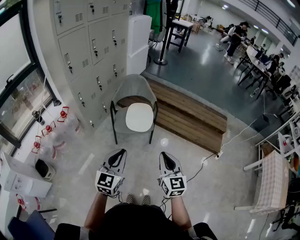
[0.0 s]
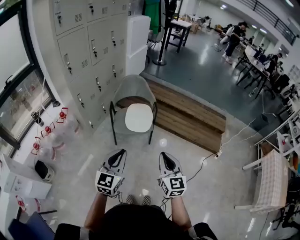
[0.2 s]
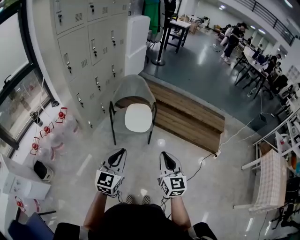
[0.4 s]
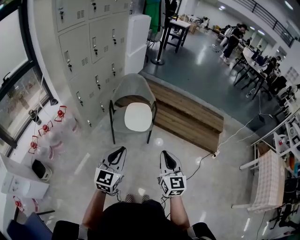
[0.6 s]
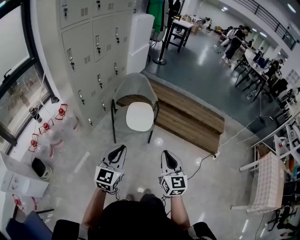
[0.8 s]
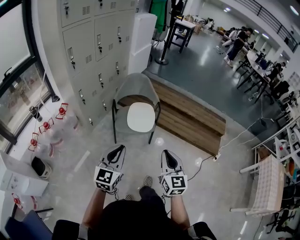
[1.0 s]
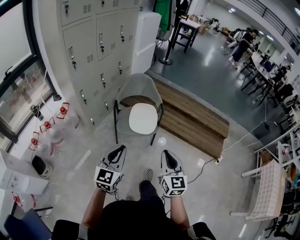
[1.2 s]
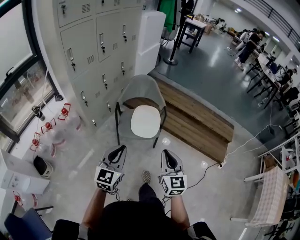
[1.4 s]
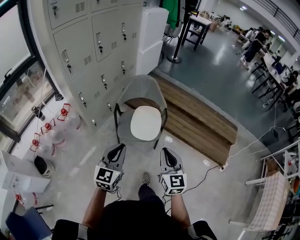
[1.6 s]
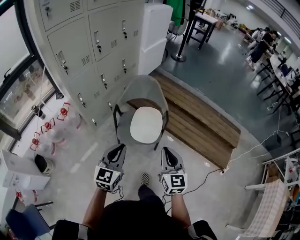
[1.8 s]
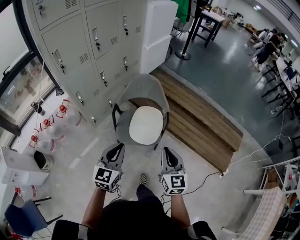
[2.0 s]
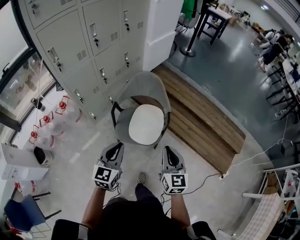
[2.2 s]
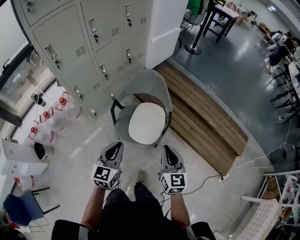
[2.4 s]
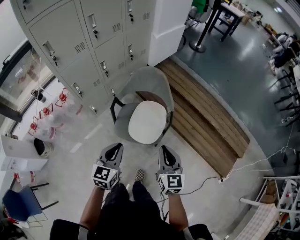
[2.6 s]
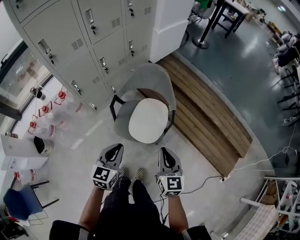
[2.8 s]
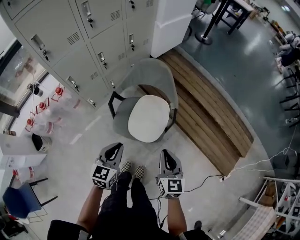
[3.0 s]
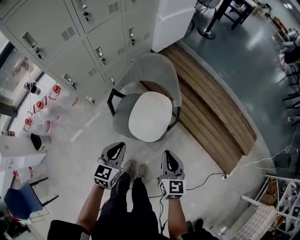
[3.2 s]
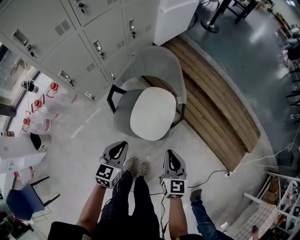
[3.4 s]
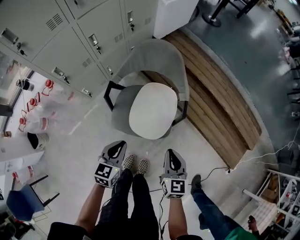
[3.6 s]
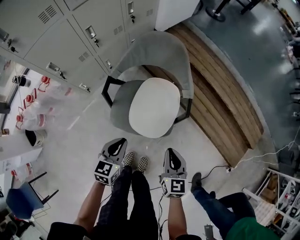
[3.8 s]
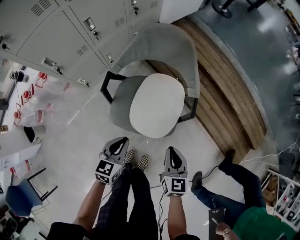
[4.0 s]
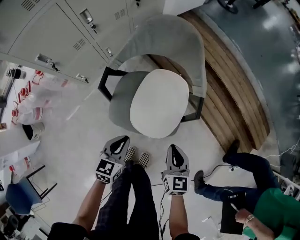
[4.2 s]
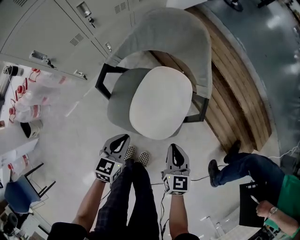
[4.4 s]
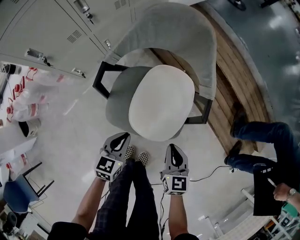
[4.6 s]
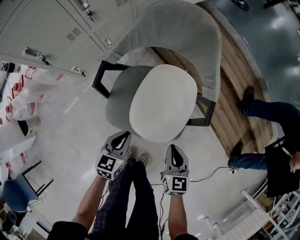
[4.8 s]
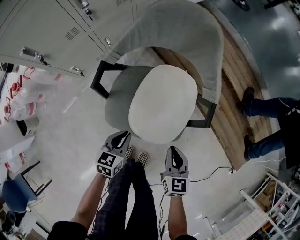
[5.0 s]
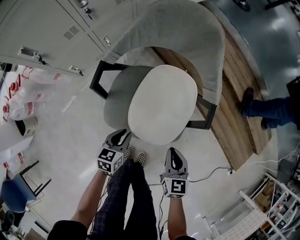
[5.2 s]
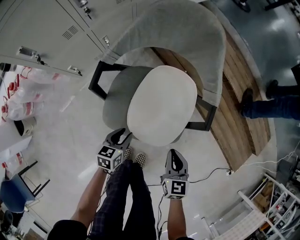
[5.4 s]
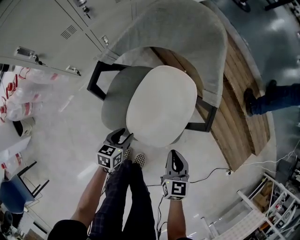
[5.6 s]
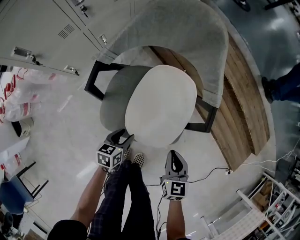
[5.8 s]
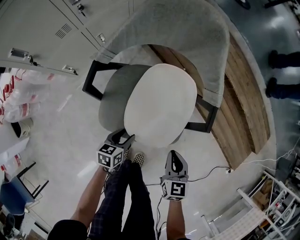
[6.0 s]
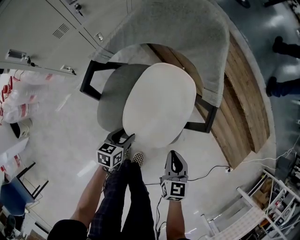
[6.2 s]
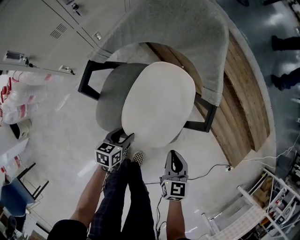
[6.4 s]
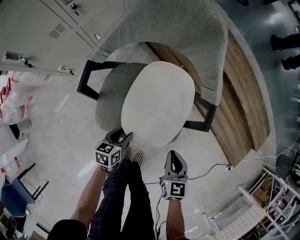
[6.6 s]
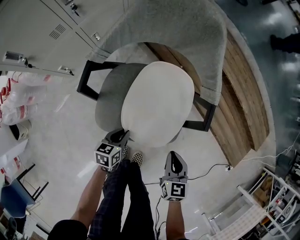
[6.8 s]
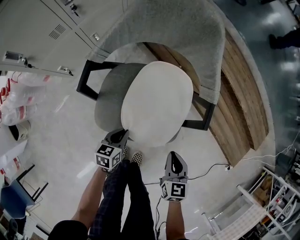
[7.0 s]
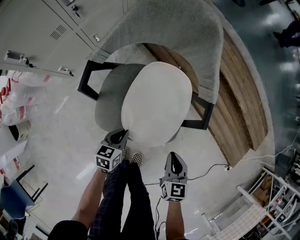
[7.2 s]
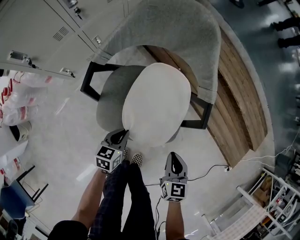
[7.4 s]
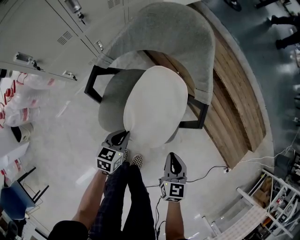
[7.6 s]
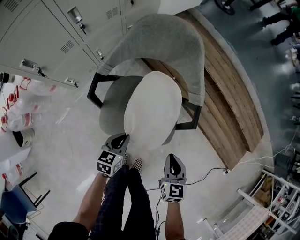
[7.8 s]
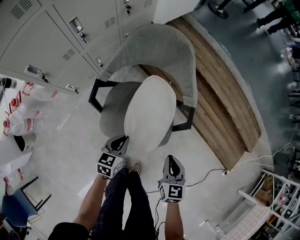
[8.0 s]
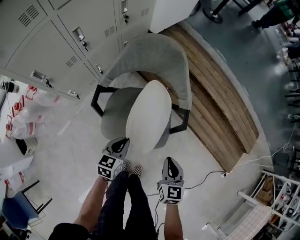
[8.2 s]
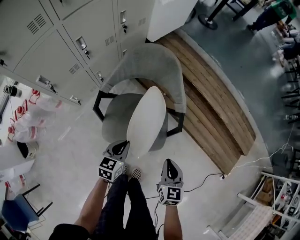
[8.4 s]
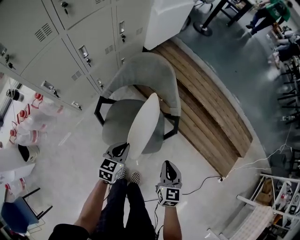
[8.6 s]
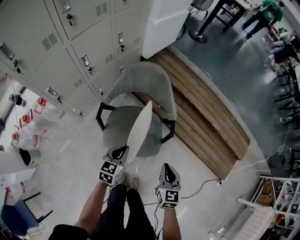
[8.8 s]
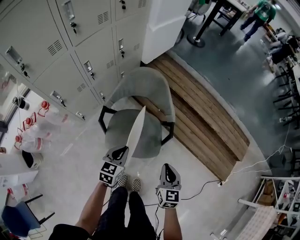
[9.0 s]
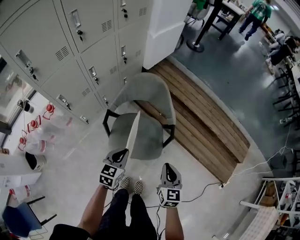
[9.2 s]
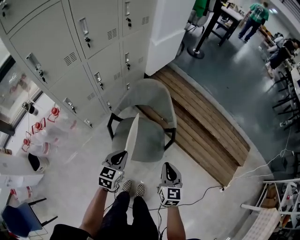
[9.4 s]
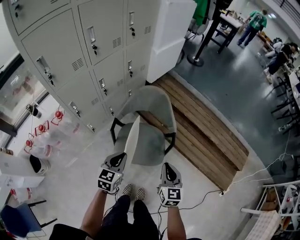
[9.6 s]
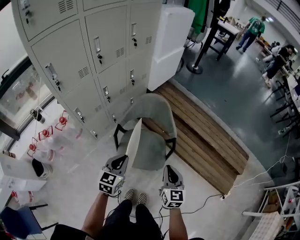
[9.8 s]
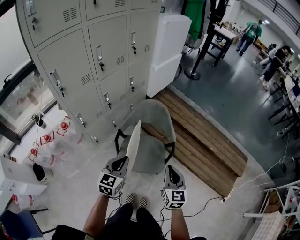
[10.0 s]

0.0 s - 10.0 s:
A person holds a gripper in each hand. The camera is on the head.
0.0 s - 1.4 s: Both grippers move forward and to the left, approximately 15 cm.
1.4 s - 2.8 s: The right gripper heads forward, covering about 30 cm. Meanwhile the left gripper shifts roughly 30 cm forward and downward, and changes its angle by about 20 degrees.
2.8 s - 4.2 s: Both grippers travel together downward, roughly 30 cm.
4.2 s - 5.8 s: The right gripper shifts some 10 cm downward; the left gripper goes some 20 cm downward, turns by approximately 20 degrees, and opens its fingers.
5.8 s - 7.2 s: The left gripper closes up.
7.2 s - 8.6 s: The grippers both shift upward by roughly 25 cm.
8.6 s - 10.0 s: Both grippers travel together upward, approximately 25 cm.

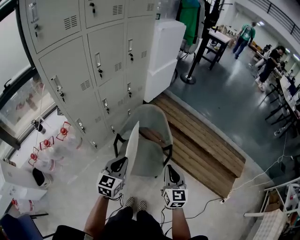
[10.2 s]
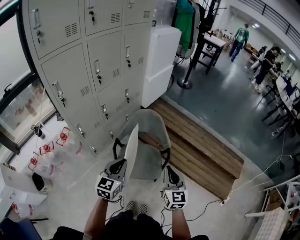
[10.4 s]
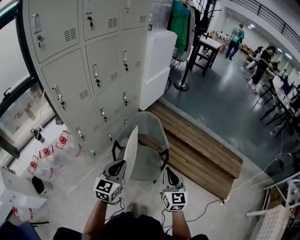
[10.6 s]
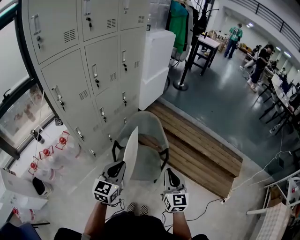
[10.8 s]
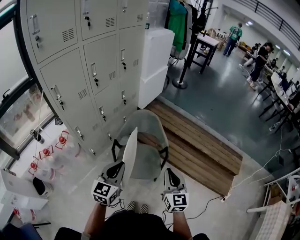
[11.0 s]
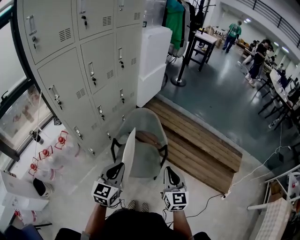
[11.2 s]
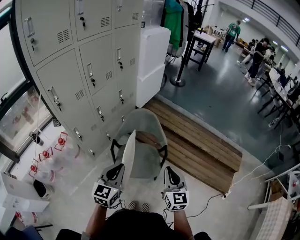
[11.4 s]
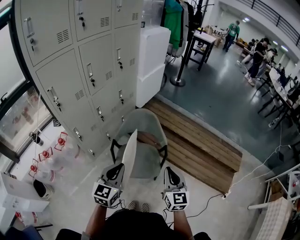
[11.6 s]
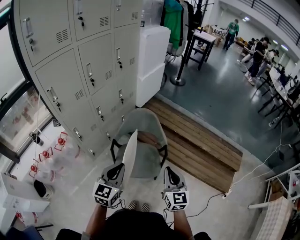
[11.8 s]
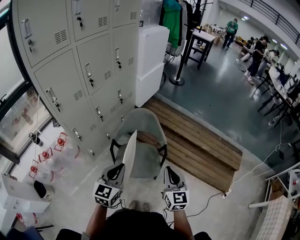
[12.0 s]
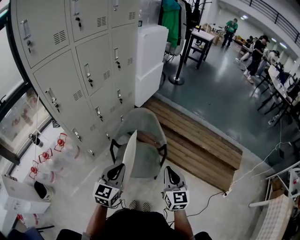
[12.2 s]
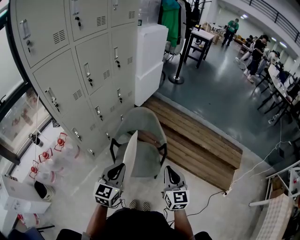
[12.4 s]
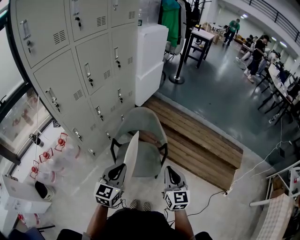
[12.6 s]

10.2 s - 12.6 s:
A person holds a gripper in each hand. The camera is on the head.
10.2 s - 11.4 s: The left gripper goes roughly 10 cm backward and upward, while the right gripper changes place by about 5 cm.
11.4 s - 12.6 s: Neither gripper changes place.

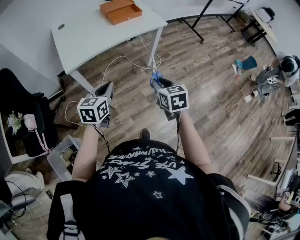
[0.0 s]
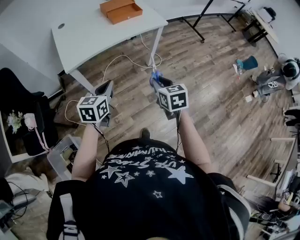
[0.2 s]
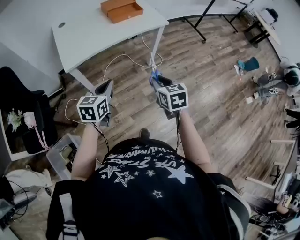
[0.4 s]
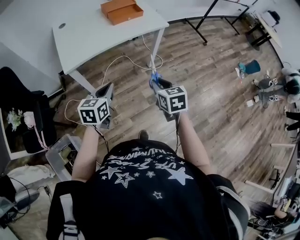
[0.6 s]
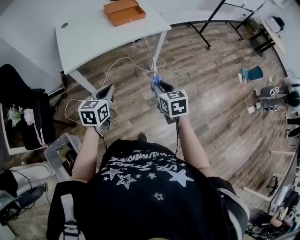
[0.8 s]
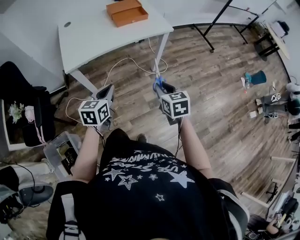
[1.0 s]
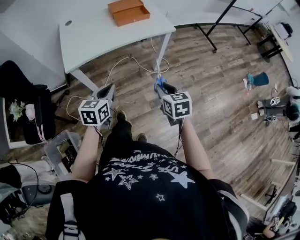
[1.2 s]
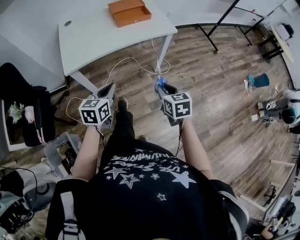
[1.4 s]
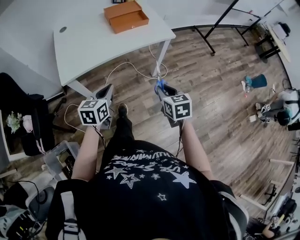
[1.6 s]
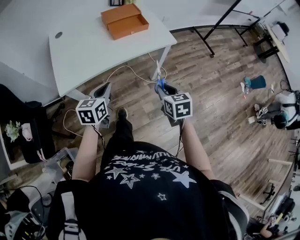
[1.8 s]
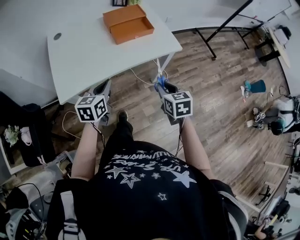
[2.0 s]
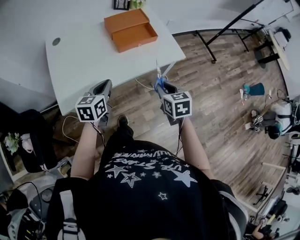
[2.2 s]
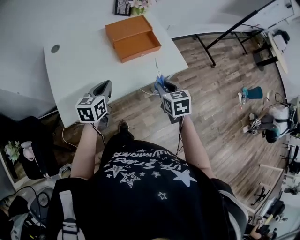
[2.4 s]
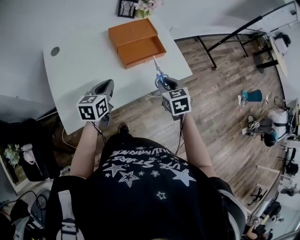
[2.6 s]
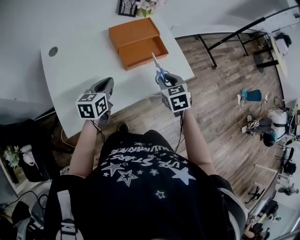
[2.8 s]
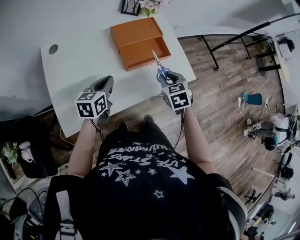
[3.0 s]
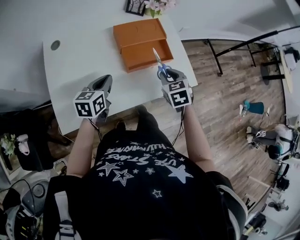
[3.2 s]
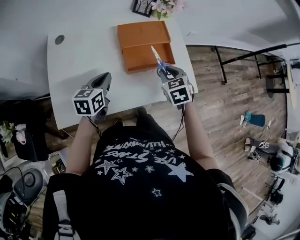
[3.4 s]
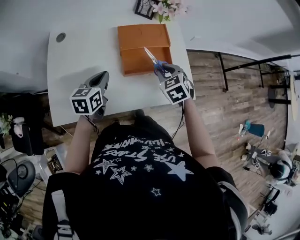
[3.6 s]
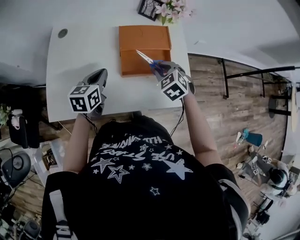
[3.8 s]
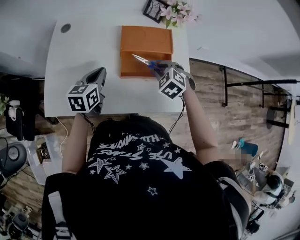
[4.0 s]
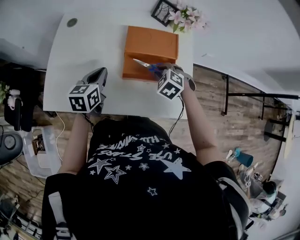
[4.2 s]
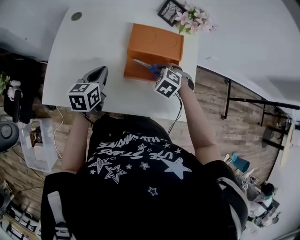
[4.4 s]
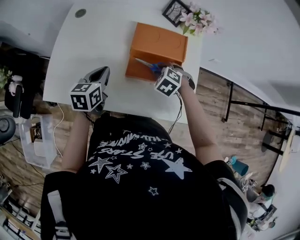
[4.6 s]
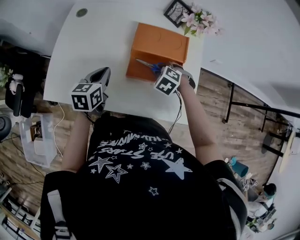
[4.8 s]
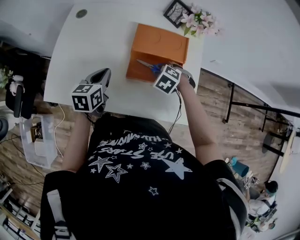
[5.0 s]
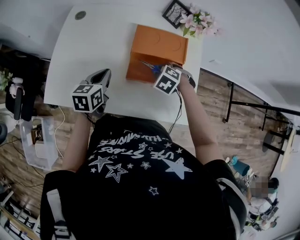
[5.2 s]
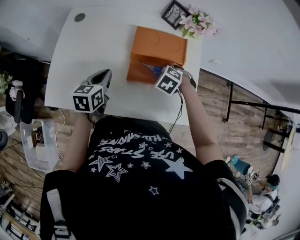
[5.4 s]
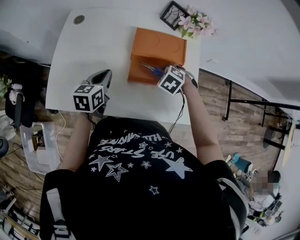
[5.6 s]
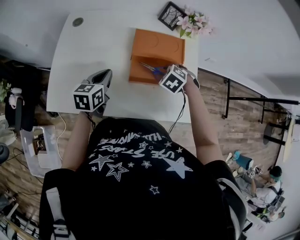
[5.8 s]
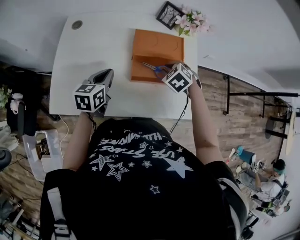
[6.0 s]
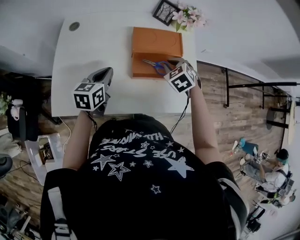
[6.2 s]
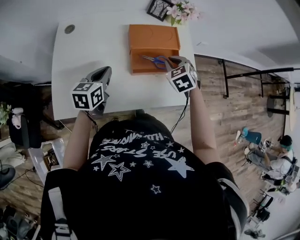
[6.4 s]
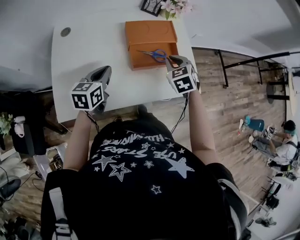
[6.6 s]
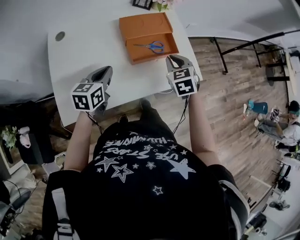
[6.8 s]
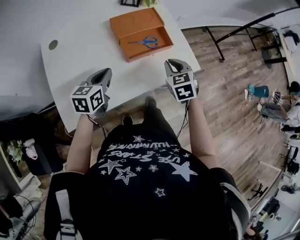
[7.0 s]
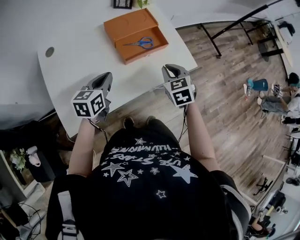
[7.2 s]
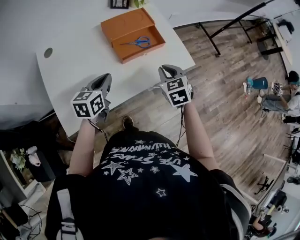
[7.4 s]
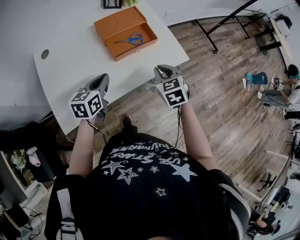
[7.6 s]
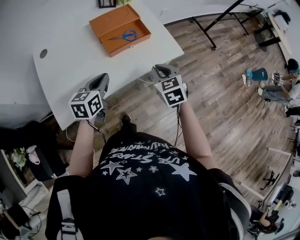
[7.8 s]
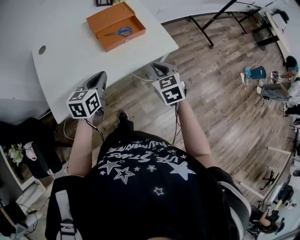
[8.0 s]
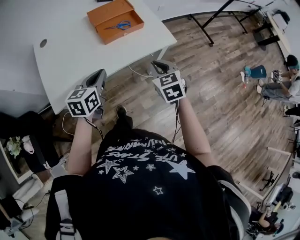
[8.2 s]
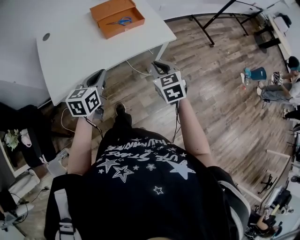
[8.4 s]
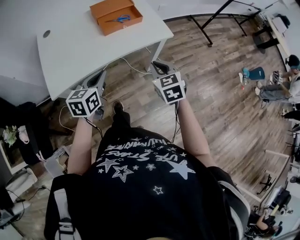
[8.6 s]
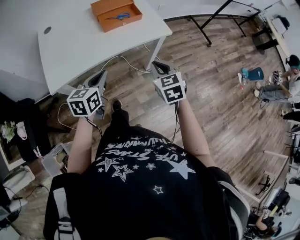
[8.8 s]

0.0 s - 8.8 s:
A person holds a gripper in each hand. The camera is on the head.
0.0 s - 1.4 s: Both grippers move forward and to the right, roughly 10 cm.
1.4 s - 3.0 s: Both grippers are carried forward, approximately 50 cm. The right gripper changes its angle by approximately 20 degrees.
3.0 s - 4.4 s: The right gripper changes place by about 20 cm, and twists roughly 60 degrees counterclockwise, seen from behind. The left gripper shifts by about 5 cm, and rotates approximately 30 degrees.
4.4 s - 5.8 s: The grippers make only small movements.
5.8 s - 7.4 s: The left gripper moves about 10 cm, and changes its angle by some 30 degrees, while the right gripper moves about 25 cm, and rotates around the line of its fingers by some 50 degrees, clockwise from behind.
7.4 s - 8.8 s: The two grippers go some 25 cm backward and to the right.

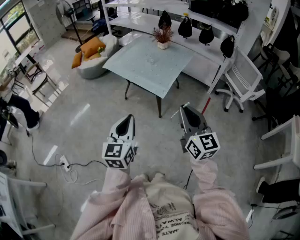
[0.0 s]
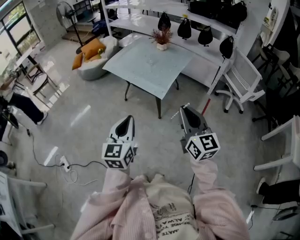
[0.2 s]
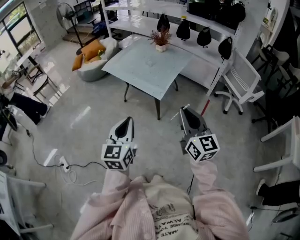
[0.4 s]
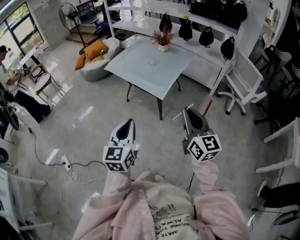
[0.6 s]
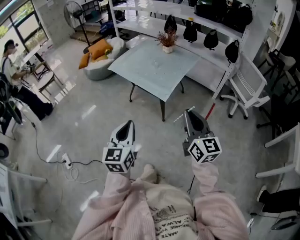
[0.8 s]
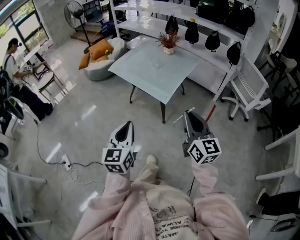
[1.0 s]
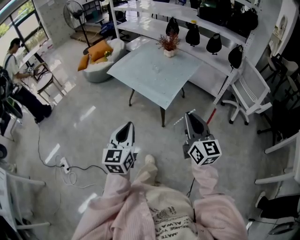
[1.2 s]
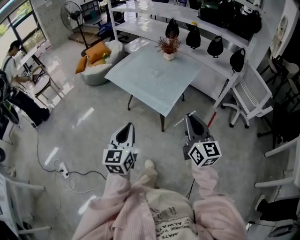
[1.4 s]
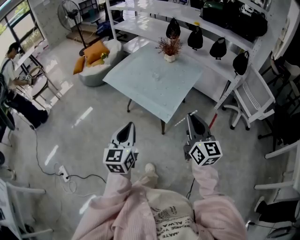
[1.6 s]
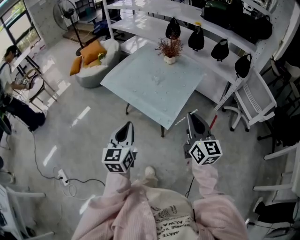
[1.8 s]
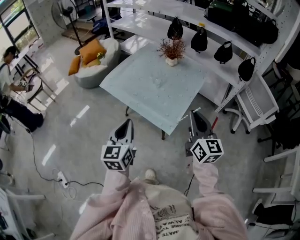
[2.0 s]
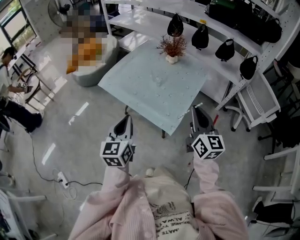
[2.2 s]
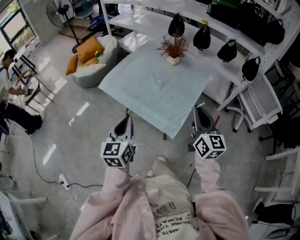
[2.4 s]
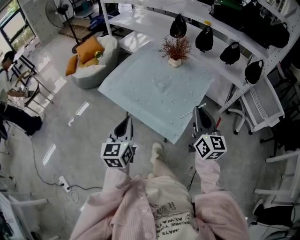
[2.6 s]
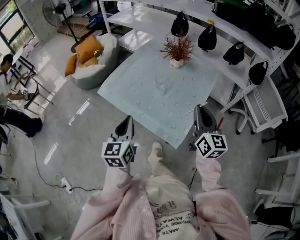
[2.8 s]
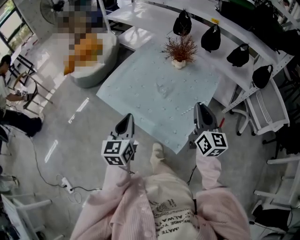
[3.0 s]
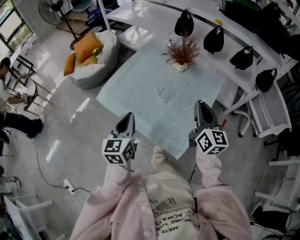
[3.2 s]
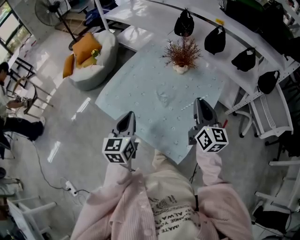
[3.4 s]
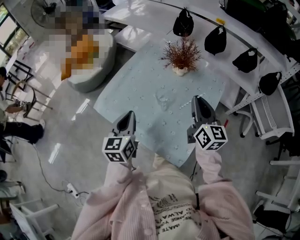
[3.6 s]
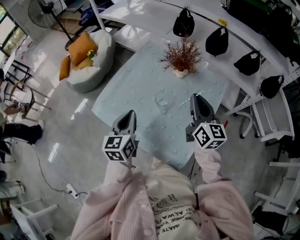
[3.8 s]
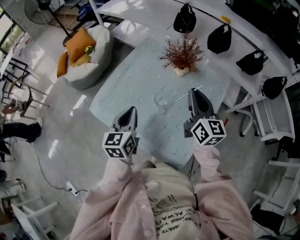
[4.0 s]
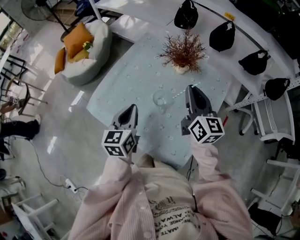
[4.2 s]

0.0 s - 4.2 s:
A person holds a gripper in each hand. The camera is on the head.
0.0 s - 1.4 s: Both grippers travel together forward, about 10 cm.
1.4 s - 2.8 s: The grippers both shift forward by roughly 30 cm.
2.8 s - 4.2 s: Both grippers move forward, some 25 cm.
